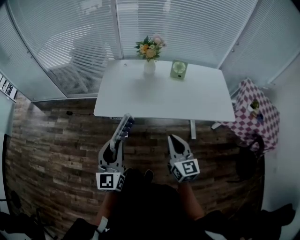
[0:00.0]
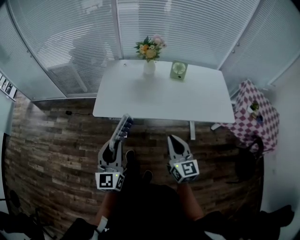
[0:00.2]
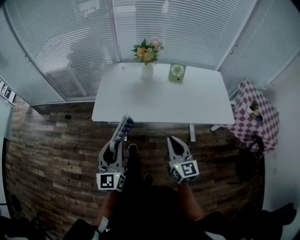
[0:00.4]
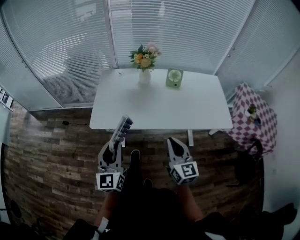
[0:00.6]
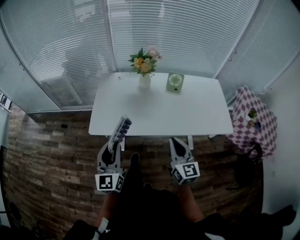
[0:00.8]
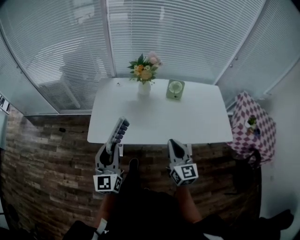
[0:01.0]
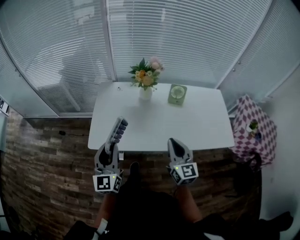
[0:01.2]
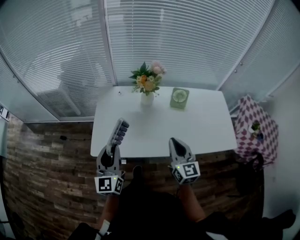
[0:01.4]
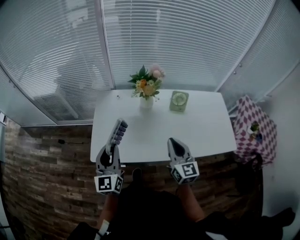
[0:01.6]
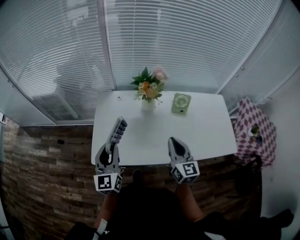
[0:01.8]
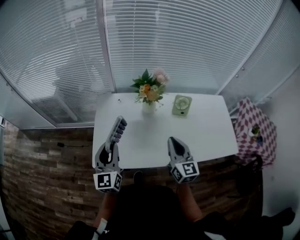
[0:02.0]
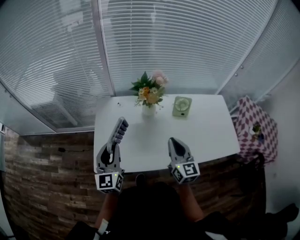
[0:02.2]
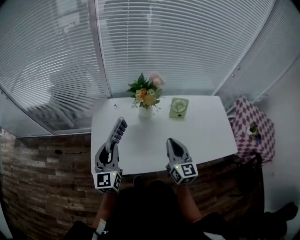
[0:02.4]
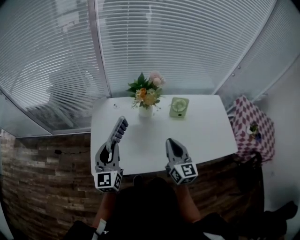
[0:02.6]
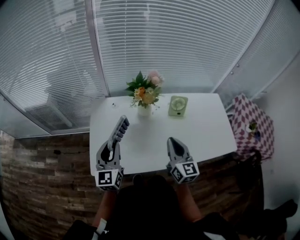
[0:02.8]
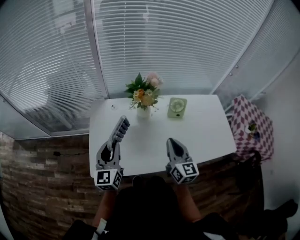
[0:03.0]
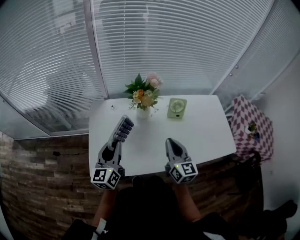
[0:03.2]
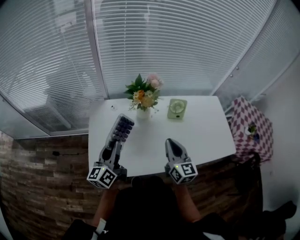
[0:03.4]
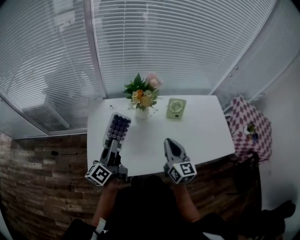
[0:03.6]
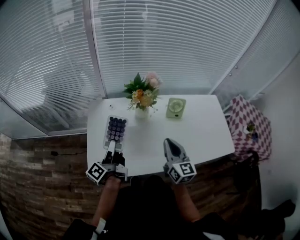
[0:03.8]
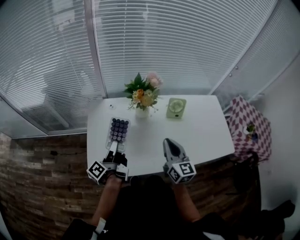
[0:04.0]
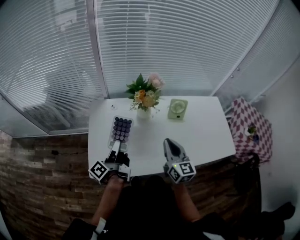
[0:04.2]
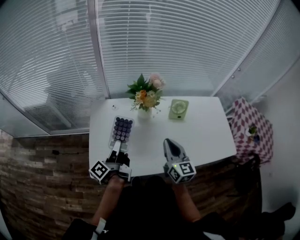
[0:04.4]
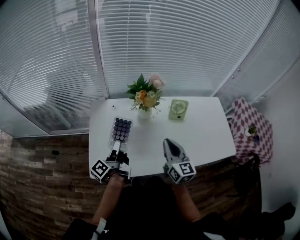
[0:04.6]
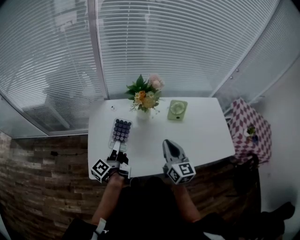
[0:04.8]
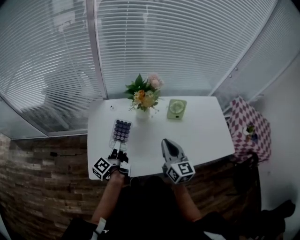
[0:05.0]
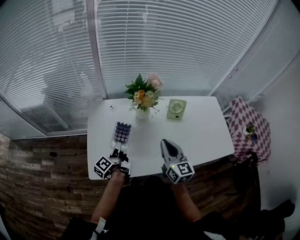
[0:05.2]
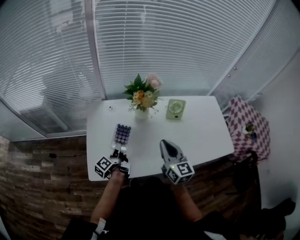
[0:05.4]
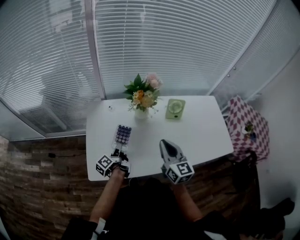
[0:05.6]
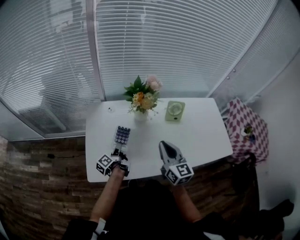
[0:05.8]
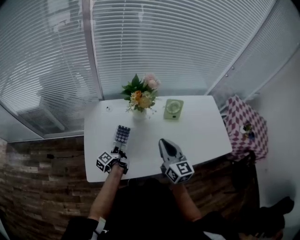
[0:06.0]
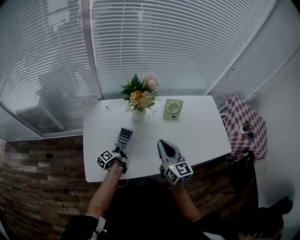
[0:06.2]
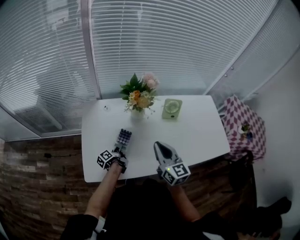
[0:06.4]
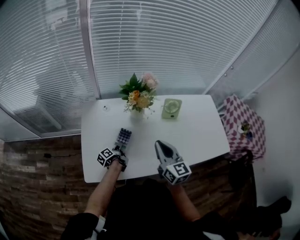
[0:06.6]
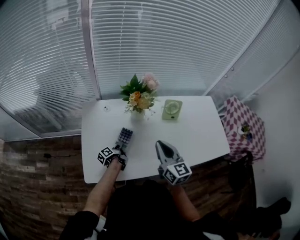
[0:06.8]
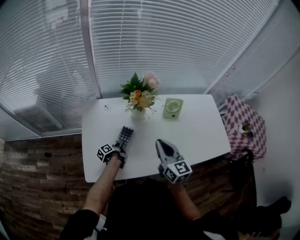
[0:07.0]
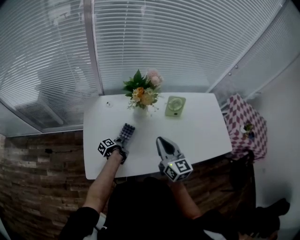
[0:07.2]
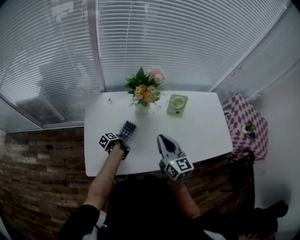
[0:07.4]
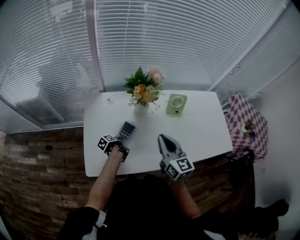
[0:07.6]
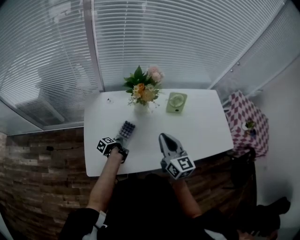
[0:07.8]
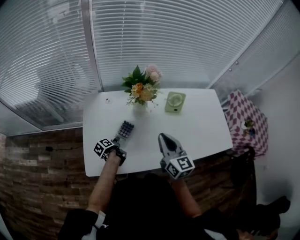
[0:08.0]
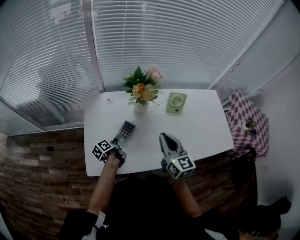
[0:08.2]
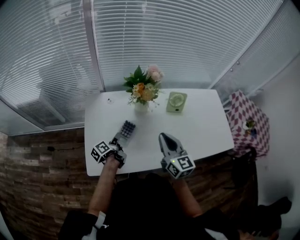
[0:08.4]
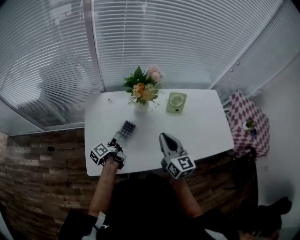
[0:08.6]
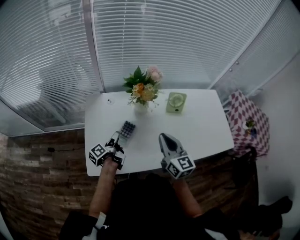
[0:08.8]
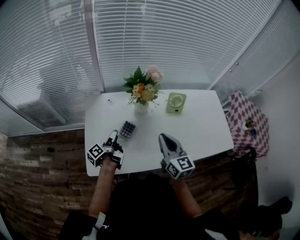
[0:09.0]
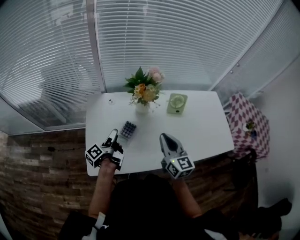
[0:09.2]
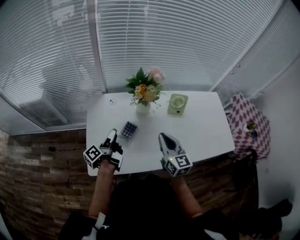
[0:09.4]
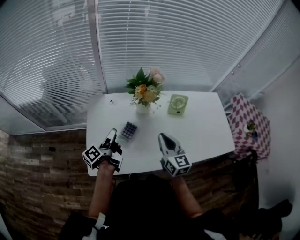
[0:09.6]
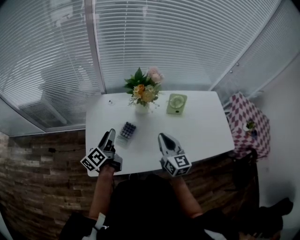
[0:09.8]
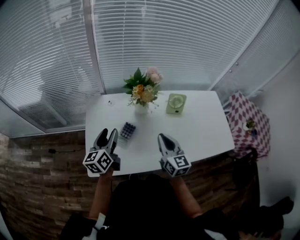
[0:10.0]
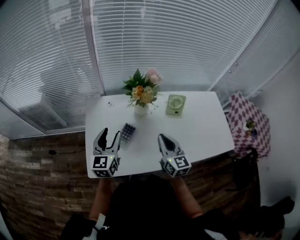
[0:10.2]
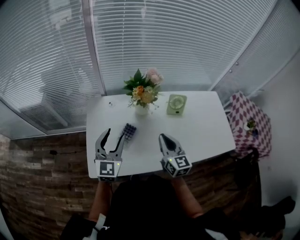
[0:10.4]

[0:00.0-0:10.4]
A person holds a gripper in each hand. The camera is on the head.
0:00.0 to 0:01.4: The two grippers go about 25 cm forward.
0:01.4 to 0:03.0: Both grippers move forward, some 10 cm.
0:03.0 to 0:04.4: The left gripper rolls counterclockwise, seen from behind, by approximately 80 degrees.
0:04.4 to 0:06.0: The left gripper heads downward, covering roughly 20 cm.
0:06.0 to 0:07.4: The left gripper goes about 10 cm downward, and turns by roughly 30 degrees.
0:07.4 to 0:09.0: The left gripper goes approximately 20 cm upward, and points its fingers some 30 degrees further upward.
0:09.0 to 0:10.4: The left gripper moves upward, about 15 cm, and rolls clockwise, seen from behind, by some 100 degrees.

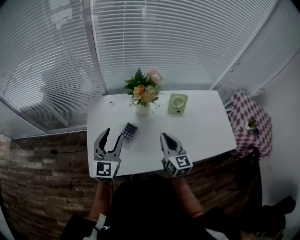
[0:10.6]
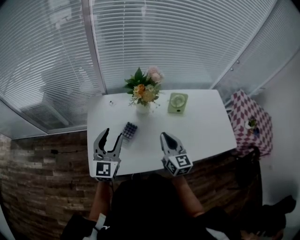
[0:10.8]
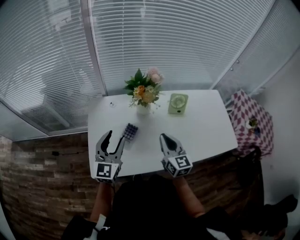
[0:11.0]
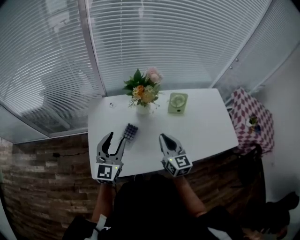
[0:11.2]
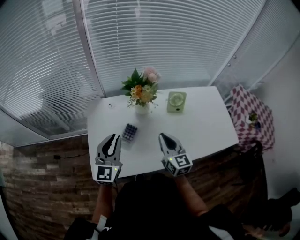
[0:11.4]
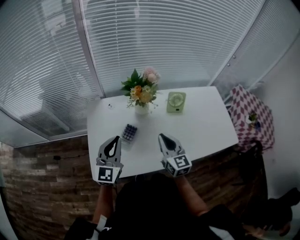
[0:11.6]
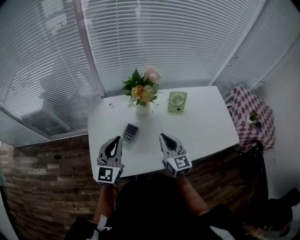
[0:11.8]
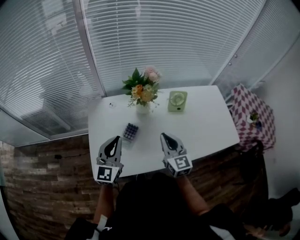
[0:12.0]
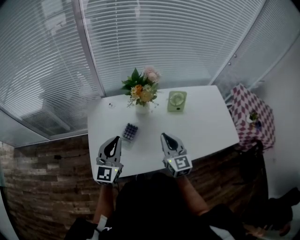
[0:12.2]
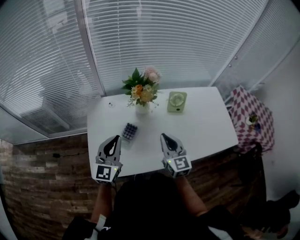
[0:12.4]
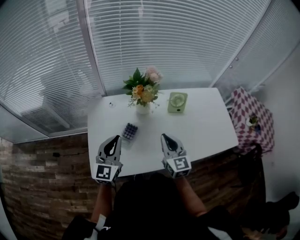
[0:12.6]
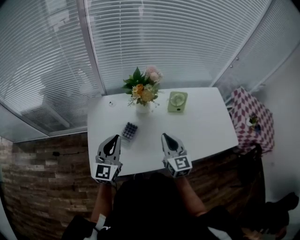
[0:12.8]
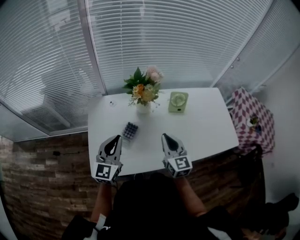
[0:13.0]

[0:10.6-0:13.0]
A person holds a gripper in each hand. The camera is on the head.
0:10.6 to 0:11.8: The left gripper closes.
0:11.8 to 0:13.0: Both grippers stay about where they are.

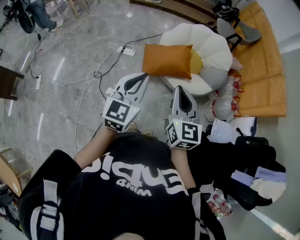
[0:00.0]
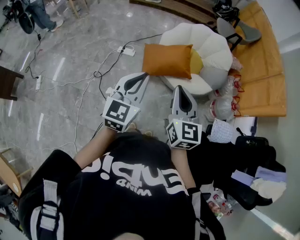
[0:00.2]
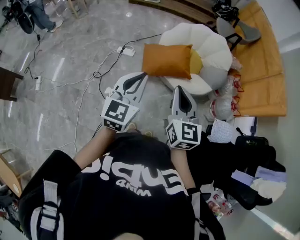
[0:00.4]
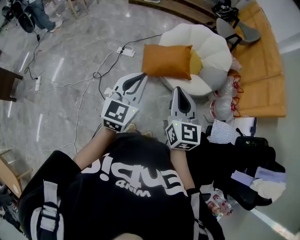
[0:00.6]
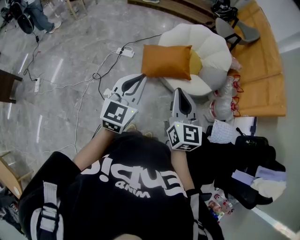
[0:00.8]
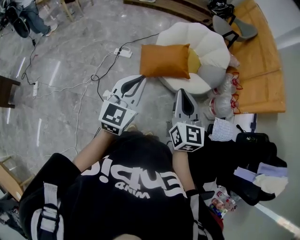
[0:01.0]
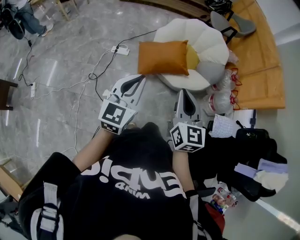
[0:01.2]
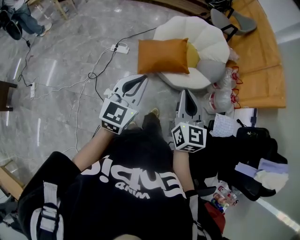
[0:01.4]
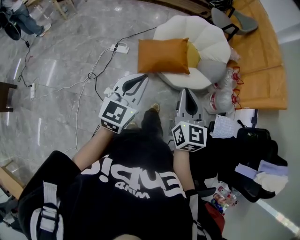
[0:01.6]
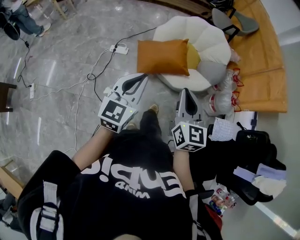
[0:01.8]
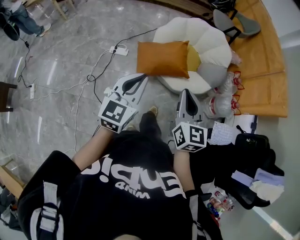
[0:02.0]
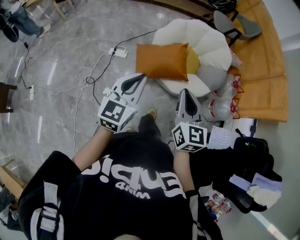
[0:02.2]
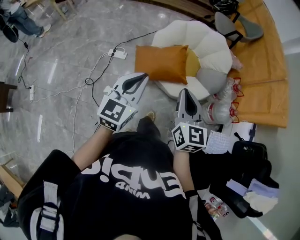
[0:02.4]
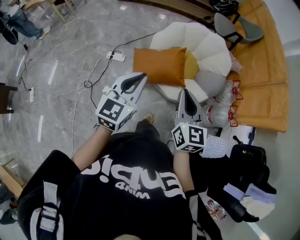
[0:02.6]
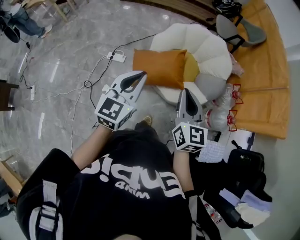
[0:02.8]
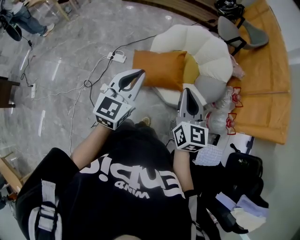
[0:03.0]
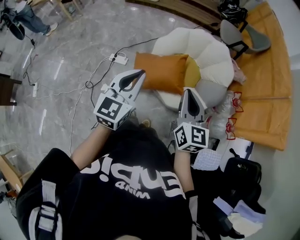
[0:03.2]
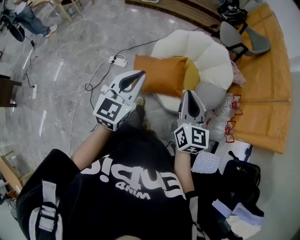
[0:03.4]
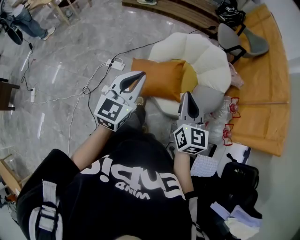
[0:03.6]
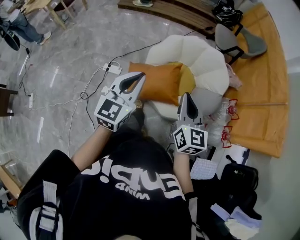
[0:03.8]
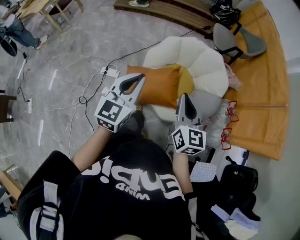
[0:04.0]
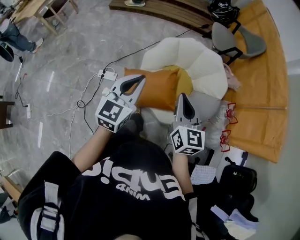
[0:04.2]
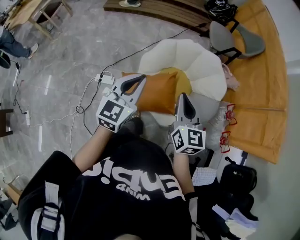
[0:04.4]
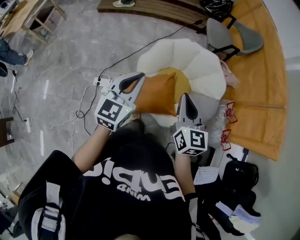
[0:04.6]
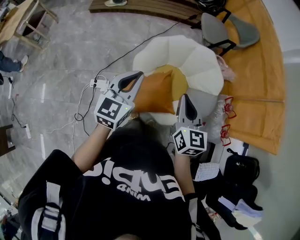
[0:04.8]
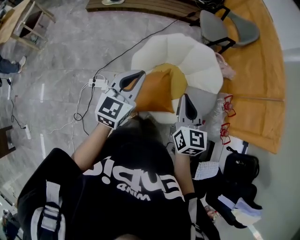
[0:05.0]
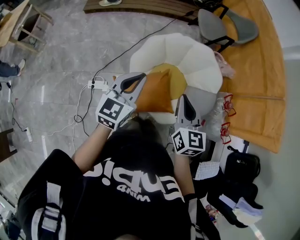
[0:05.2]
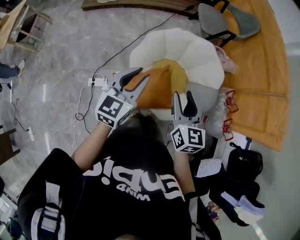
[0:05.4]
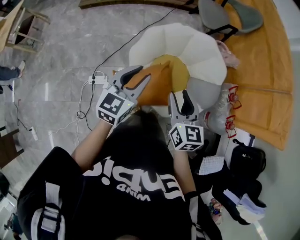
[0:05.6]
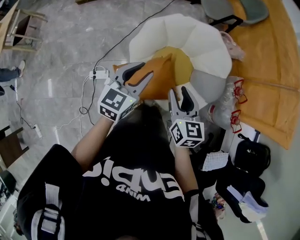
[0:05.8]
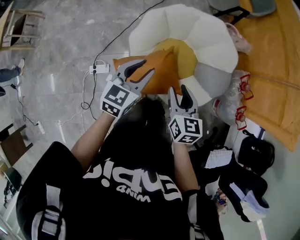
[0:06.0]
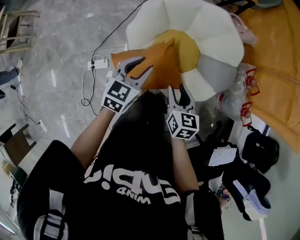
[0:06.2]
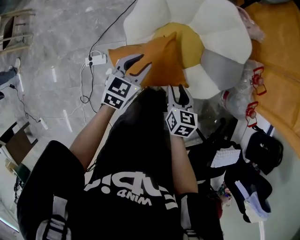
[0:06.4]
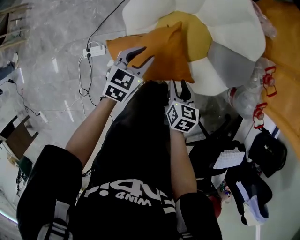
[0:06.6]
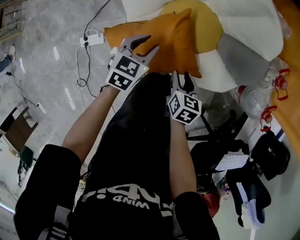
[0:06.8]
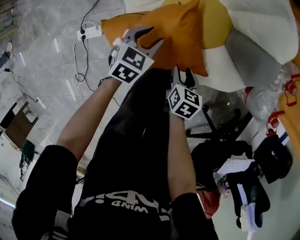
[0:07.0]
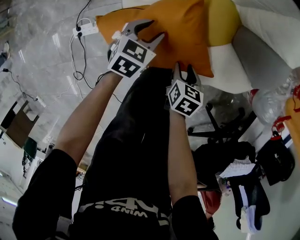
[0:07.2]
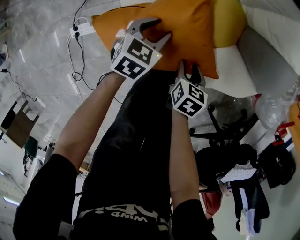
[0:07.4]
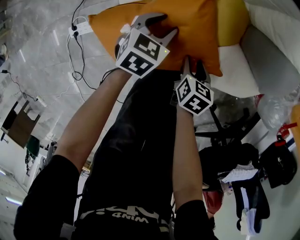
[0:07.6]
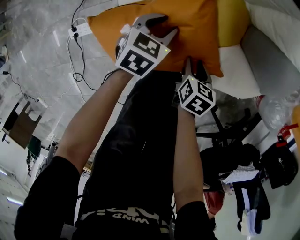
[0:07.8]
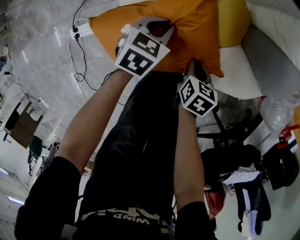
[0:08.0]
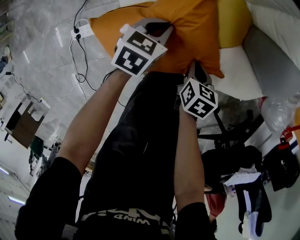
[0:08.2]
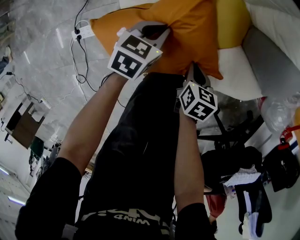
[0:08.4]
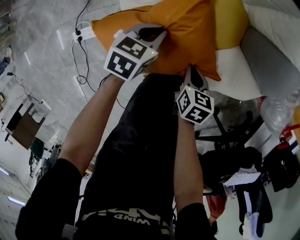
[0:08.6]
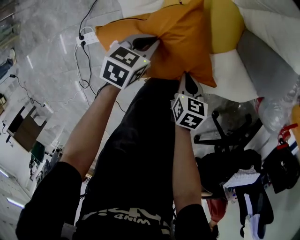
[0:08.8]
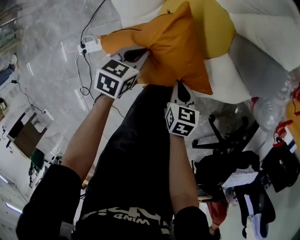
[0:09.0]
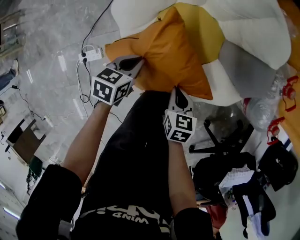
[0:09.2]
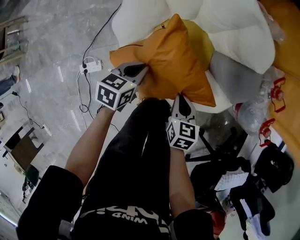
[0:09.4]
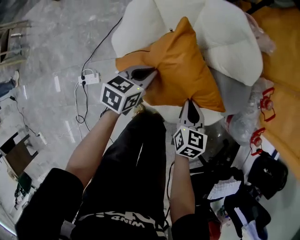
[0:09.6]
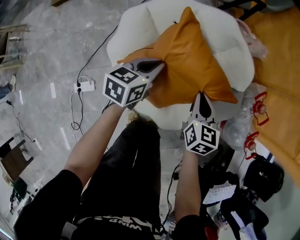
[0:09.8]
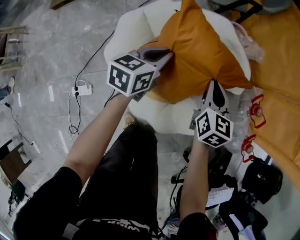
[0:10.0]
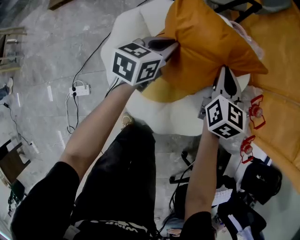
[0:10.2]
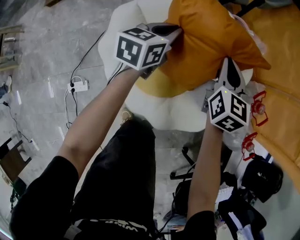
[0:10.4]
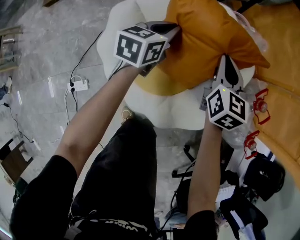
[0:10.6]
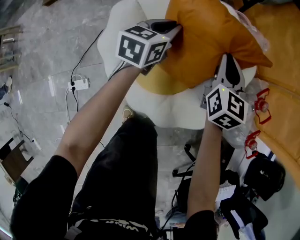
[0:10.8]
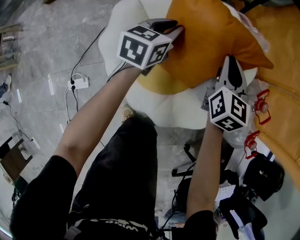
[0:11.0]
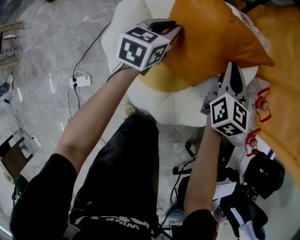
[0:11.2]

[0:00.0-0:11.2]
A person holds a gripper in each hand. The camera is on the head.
0:00.0 to 0:01.6: The left gripper ends up roughly 5 cm from where it was.
0:01.6 to 0:03.2: The two grippers go some 25 cm forward.
0:03.2 to 0:04.8: The two grippers go some 30 cm forward.
0:04.8 to 0:06.4: Both grippers move downward, approximately 35 cm. The left gripper turns by approximately 30 degrees, and opens; the right gripper rotates approximately 30 degrees, and opens.
0:06.4 to 0:08.0: Both grippers travel together downward, approximately 35 cm. The left gripper turns by about 20 degrees, and closes. Meanwhile the right gripper changes its angle by some 20 degrees, and closes its fingers.
0:08.0 to 0:09.6: The left gripper goes approximately 25 cm upward. The right gripper is displaced upward and forward by about 30 cm, and rotates roughly 30 degrees.
0:09.6 to 0:11.2: The left gripper is displaced forward by some 20 cm. The right gripper moves forward and upward, approximately 25 cm, and swivels roughly 20 degrees.
